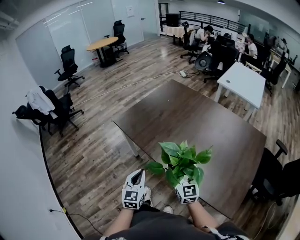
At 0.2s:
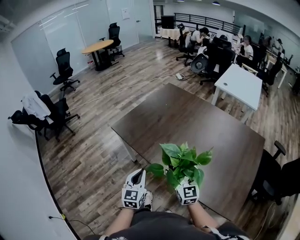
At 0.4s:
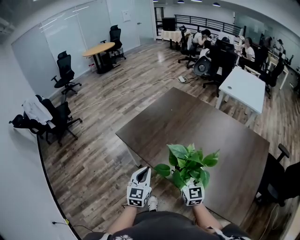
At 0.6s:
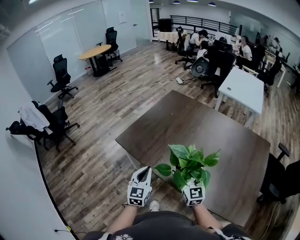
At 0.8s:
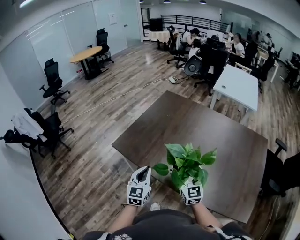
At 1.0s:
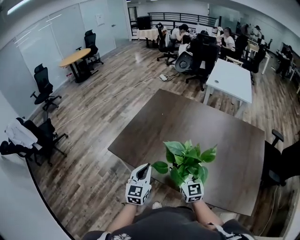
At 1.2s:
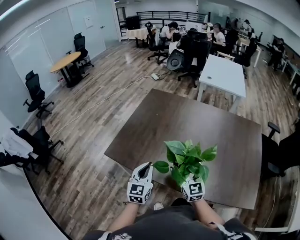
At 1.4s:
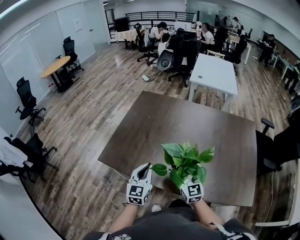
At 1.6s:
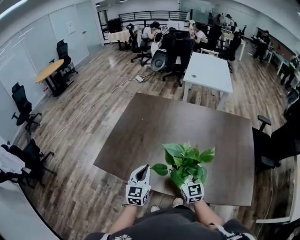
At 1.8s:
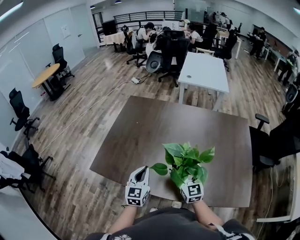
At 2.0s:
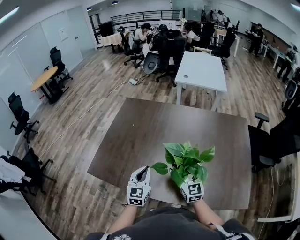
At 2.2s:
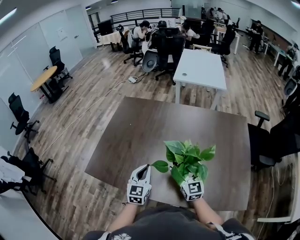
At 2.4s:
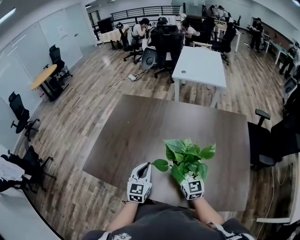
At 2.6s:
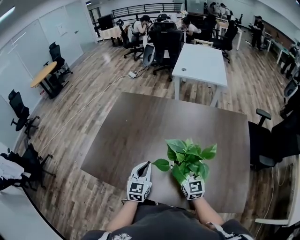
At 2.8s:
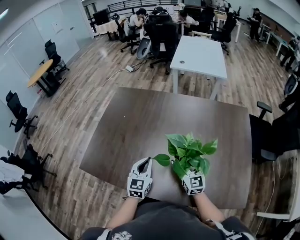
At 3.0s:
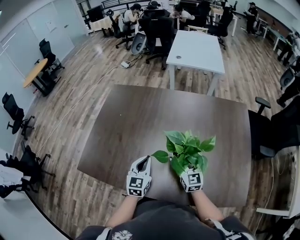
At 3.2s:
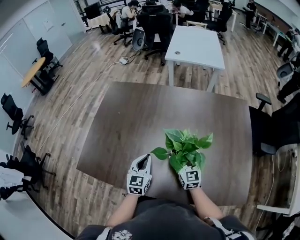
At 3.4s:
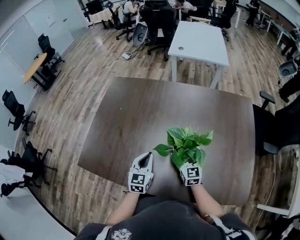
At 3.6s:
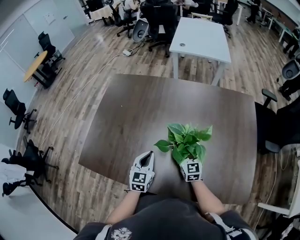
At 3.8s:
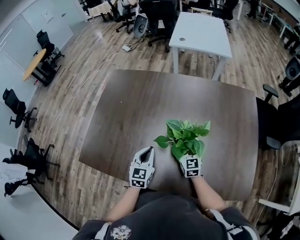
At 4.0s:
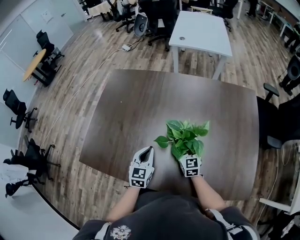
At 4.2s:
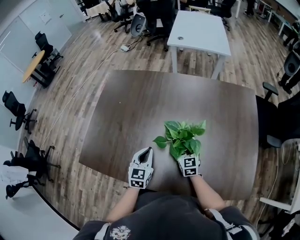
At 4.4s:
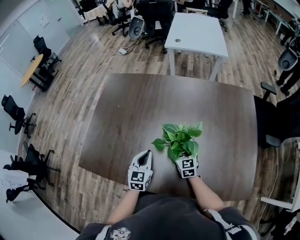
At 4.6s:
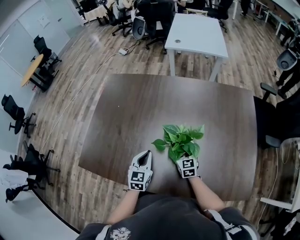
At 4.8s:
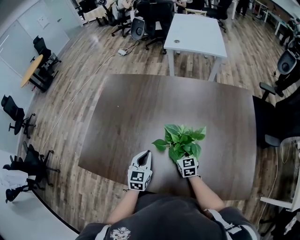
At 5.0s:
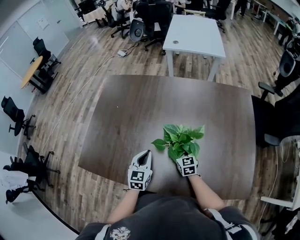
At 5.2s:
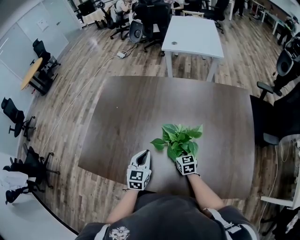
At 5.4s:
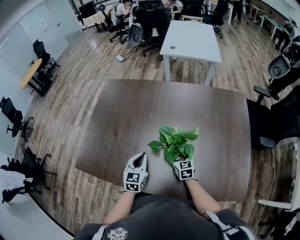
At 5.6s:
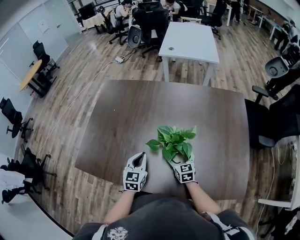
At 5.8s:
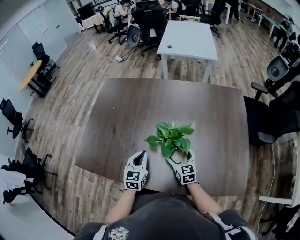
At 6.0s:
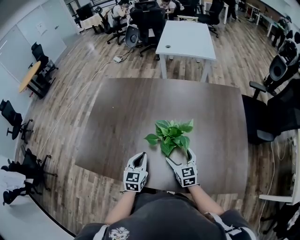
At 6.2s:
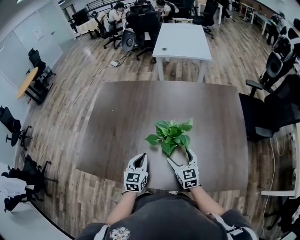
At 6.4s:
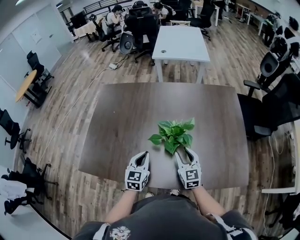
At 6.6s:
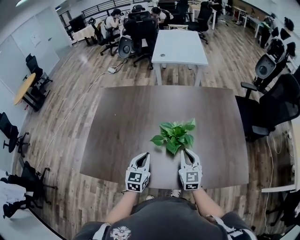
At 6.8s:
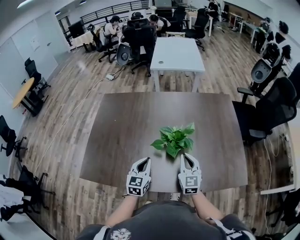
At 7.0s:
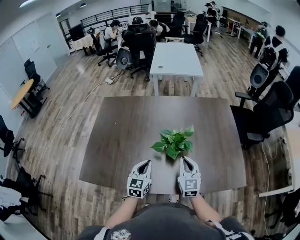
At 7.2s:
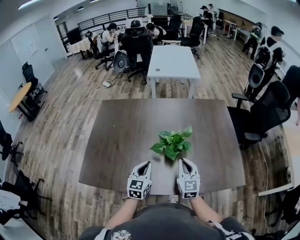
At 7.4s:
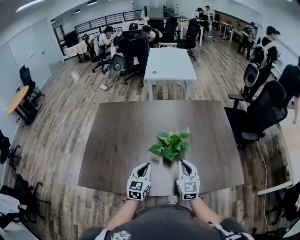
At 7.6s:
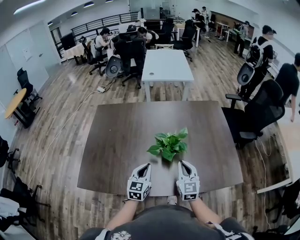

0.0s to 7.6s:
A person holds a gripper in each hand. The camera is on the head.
0.0s to 1.6s: The left gripper moves approximately 25 cm, and changes its angle by about 30 degrees; the right gripper moves approximately 15 cm, and changes its angle by approximately 20 degrees.
1.6s to 3.0s: The left gripper moves to the right and forward, about 20 cm, while the right gripper heads to the right, forward and downward, covering about 20 cm.
3.0s to 4.6s: The right gripper moves downward, approximately 15 cm. The left gripper goes roughly 5 cm downward.
4.6s to 6.0s: The right gripper goes some 10 cm backward and upward, while the left gripper moves backward, approximately 5 cm.
6.0s to 7.6s: The left gripper heads upward, covering some 5 cm. The right gripper shifts approximately 15 cm upward and backward, turns by about 20 degrees, and closes.

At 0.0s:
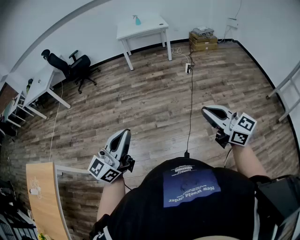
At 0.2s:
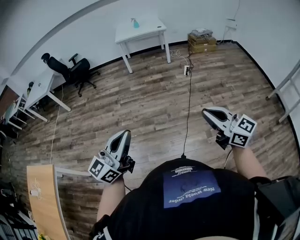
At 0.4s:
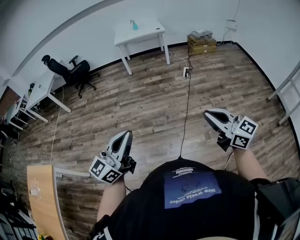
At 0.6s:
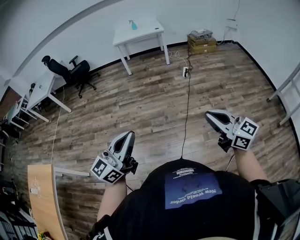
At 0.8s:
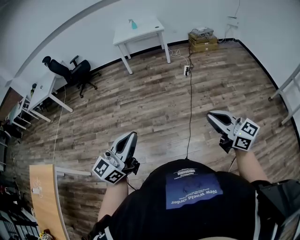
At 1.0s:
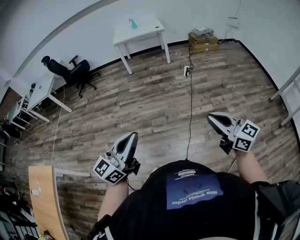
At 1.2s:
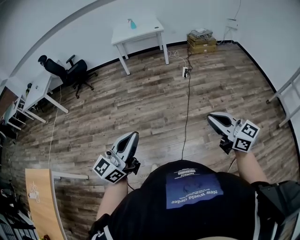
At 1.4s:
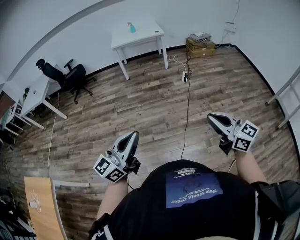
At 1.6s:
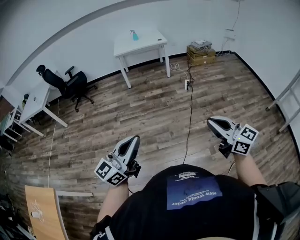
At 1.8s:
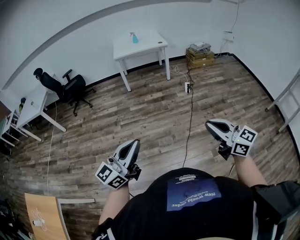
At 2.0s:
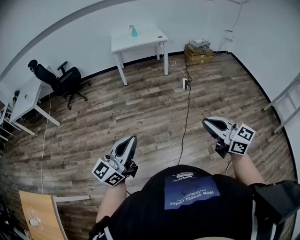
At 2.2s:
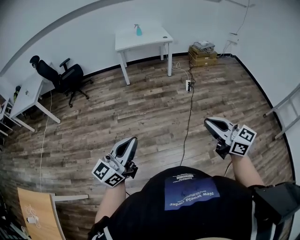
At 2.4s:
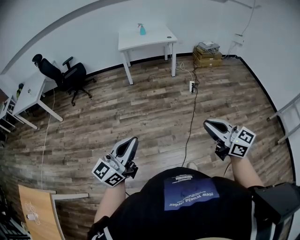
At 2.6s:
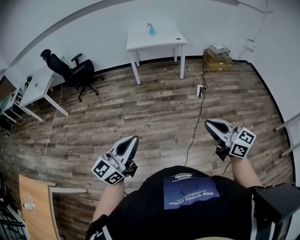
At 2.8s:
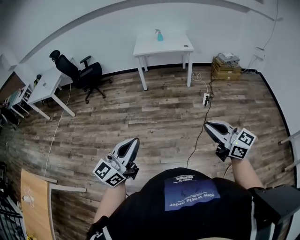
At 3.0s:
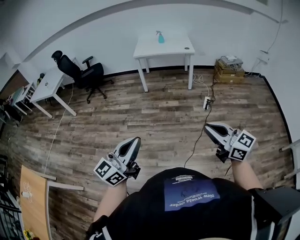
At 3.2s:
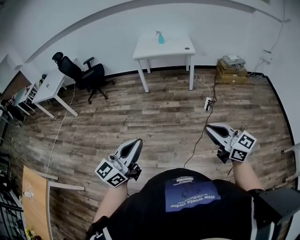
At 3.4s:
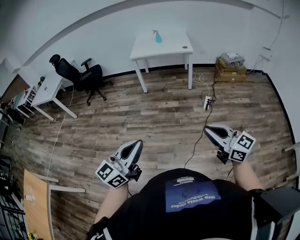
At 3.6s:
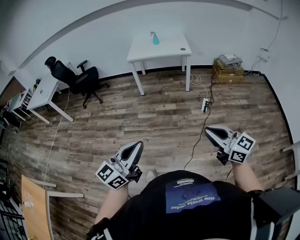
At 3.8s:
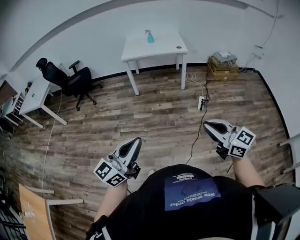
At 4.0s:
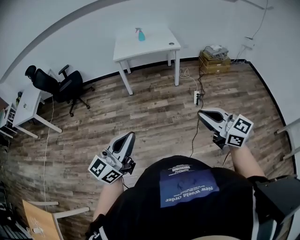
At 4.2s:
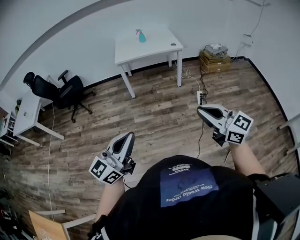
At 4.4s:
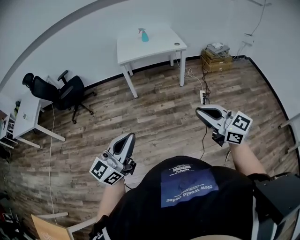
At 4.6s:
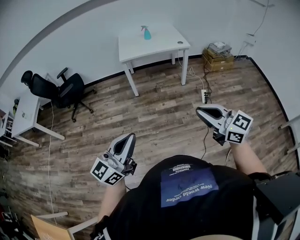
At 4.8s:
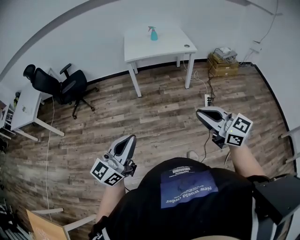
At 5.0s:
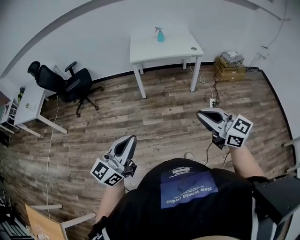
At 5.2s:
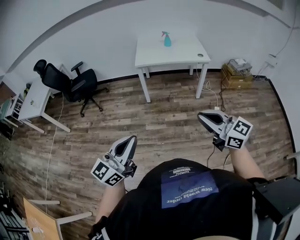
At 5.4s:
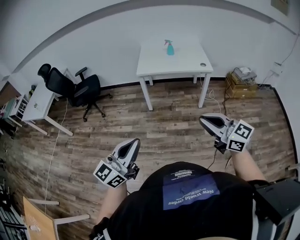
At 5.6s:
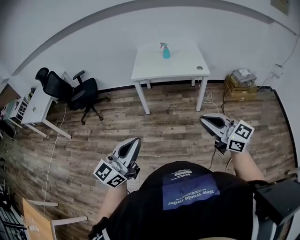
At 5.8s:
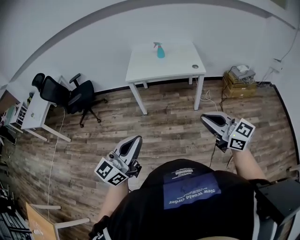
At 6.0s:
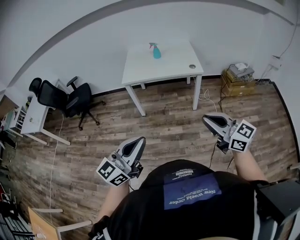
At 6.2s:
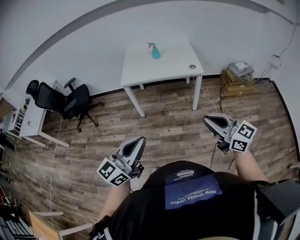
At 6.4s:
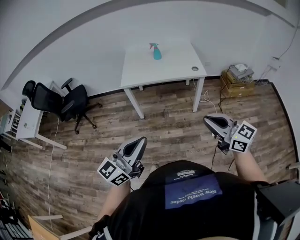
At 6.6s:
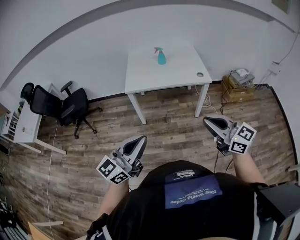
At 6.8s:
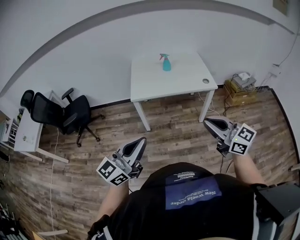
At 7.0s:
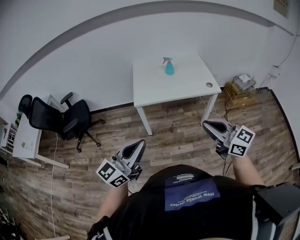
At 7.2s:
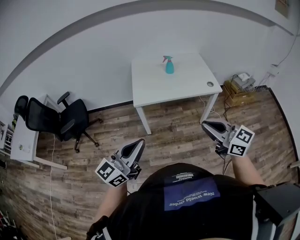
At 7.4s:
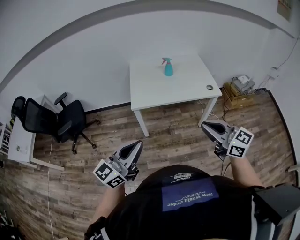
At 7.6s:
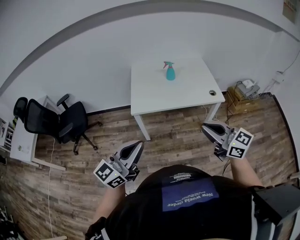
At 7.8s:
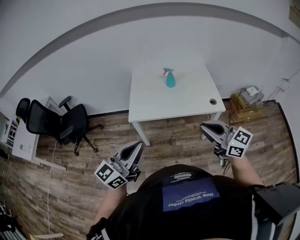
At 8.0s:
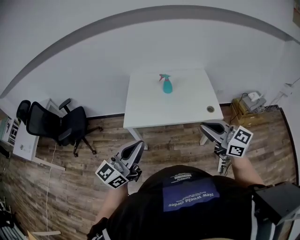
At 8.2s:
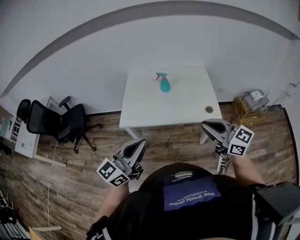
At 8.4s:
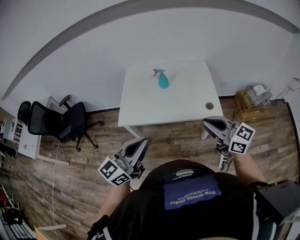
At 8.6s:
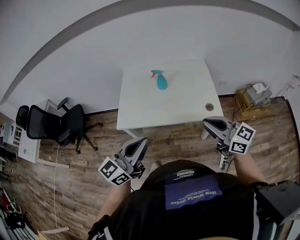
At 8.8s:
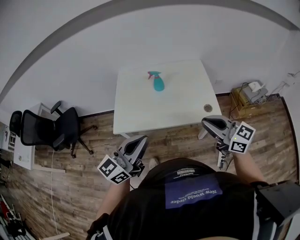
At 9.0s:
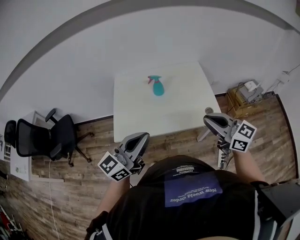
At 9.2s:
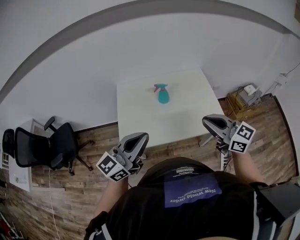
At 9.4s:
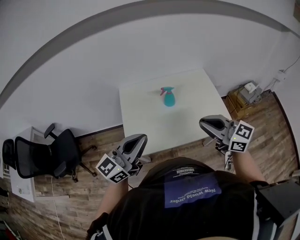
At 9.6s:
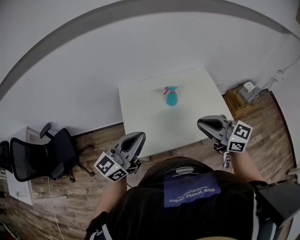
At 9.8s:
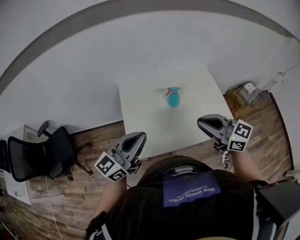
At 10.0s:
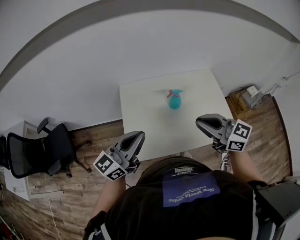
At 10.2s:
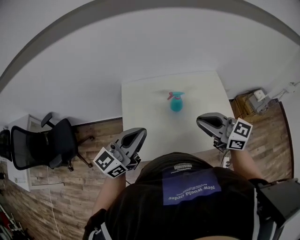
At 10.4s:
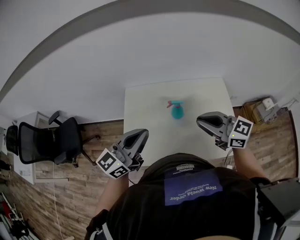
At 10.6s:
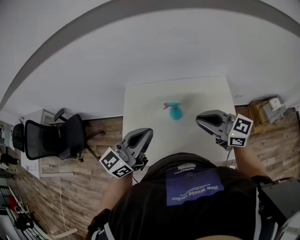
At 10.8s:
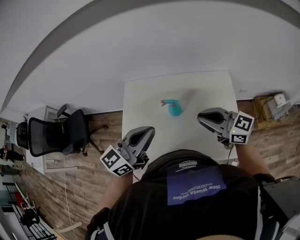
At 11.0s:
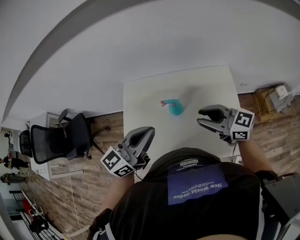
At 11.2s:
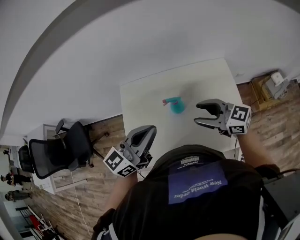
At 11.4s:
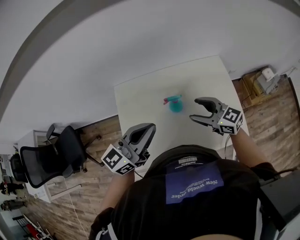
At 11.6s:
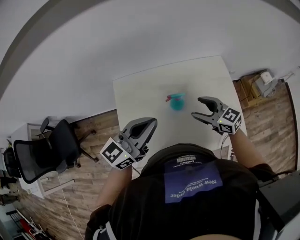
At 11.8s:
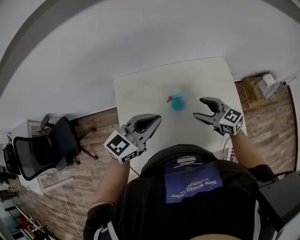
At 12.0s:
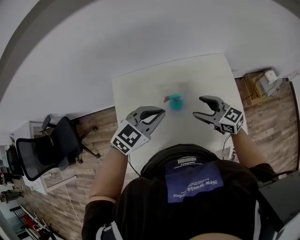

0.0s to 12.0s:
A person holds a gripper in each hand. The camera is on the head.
0.0s to 1.6s: The two grippers go approximately 15 cm forward. The right gripper reaches approximately 15 cm to the right, then returns.
1.6s to 3.0s: Both grippers move forward, about 25 cm.
3.0s to 4.4s: The two grippers go approximately 30 cm forward and to the left.
4.4s to 6.0s: Both grippers travel together forward and to the right, roughly 35 cm.
6.0s to 7.6s: The two grippers go approximately 35 cm forward and to the left.
7.6s to 9.0s: The two grippers go approximately 30 cm forward and to the right.
9.0s to 10.4s: The left gripper is displaced forward by roughly 25 cm. The right gripper is displaced forward and to the left by about 25 cm.
10.4s to 12.0s: The right gripper is displaced downward and forward by roughly 20 cm, and opens up; the left gripper shifts some 20 cm forward, downward and to the right, and points its fingers approximately 40 degrees further downward.

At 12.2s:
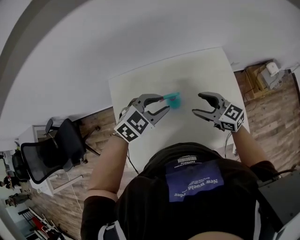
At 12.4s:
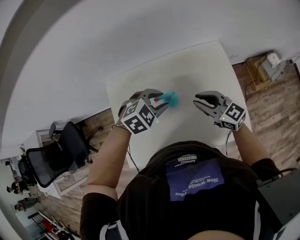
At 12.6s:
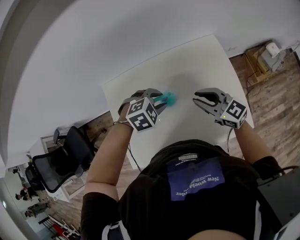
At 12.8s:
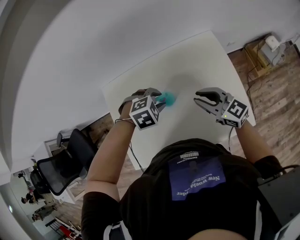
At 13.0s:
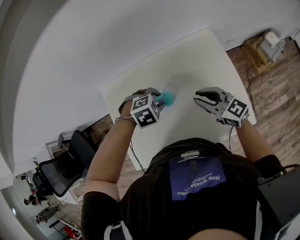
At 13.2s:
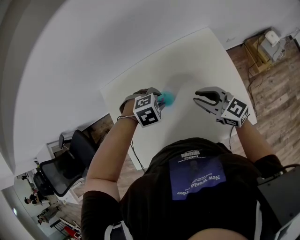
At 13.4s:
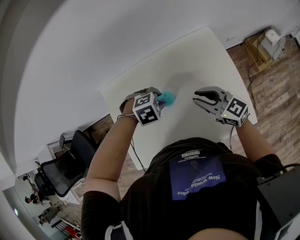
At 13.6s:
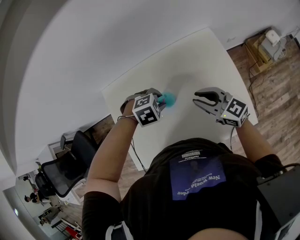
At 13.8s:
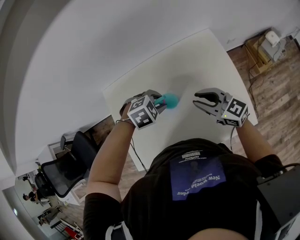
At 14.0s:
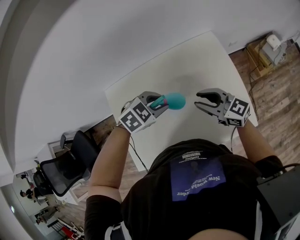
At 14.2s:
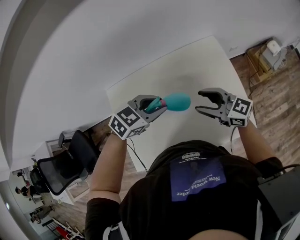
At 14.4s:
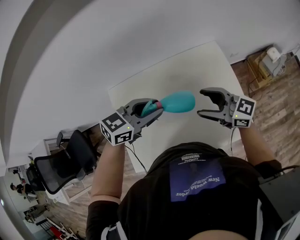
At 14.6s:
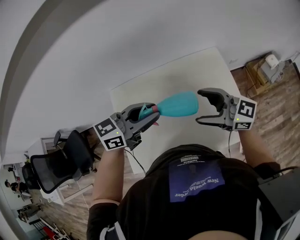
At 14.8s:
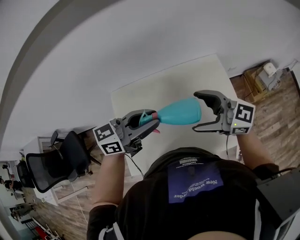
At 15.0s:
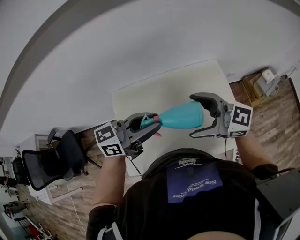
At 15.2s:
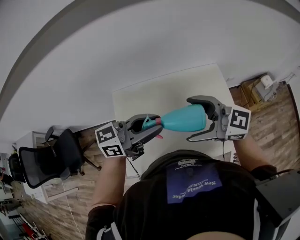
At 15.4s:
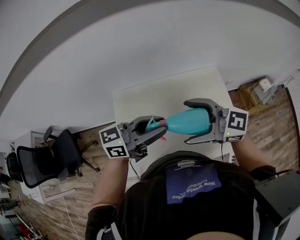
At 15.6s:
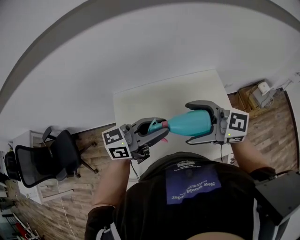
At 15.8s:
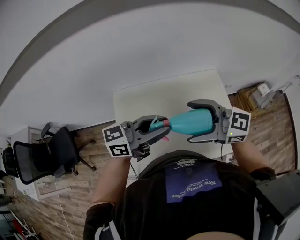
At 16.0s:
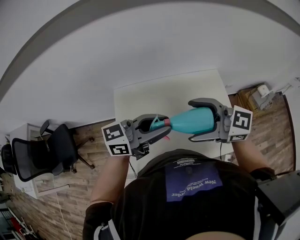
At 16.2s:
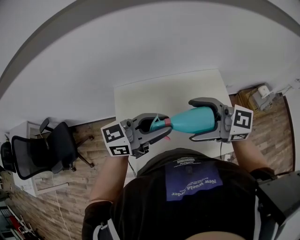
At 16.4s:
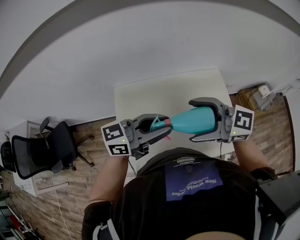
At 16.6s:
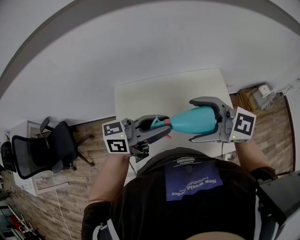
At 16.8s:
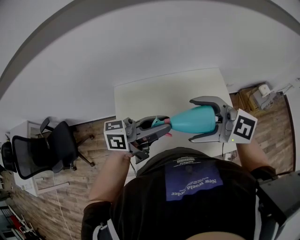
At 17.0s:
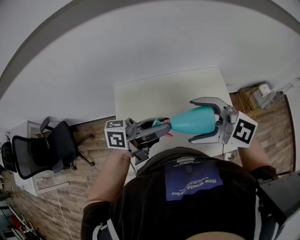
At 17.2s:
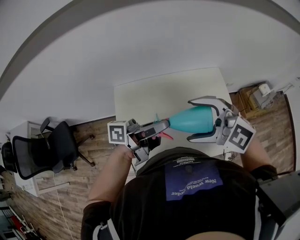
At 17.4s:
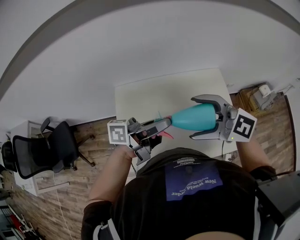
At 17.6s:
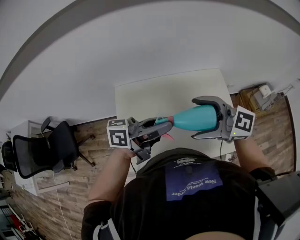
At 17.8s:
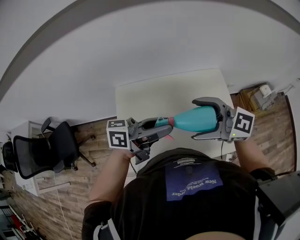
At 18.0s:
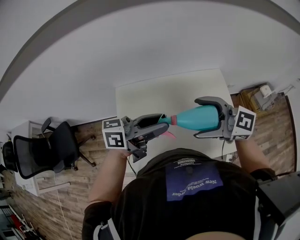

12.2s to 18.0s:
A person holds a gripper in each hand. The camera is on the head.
12.2s to 13.6s: The right gripper closes its fingers, while the left gripper is displaced downward by approximately 15 cm, and tips its fingers downward by about 40 degrees.
13.6s to 15.0s: The two grippers go some 25 cm upward. The right gripper swivels approximately 30 degrees, and opens up. Meanwhile the left gripper tips its fingers upward by approximately 80 degrees.
15.0s to 16.6s: The right gripper changes place by approximately 5 cm.
